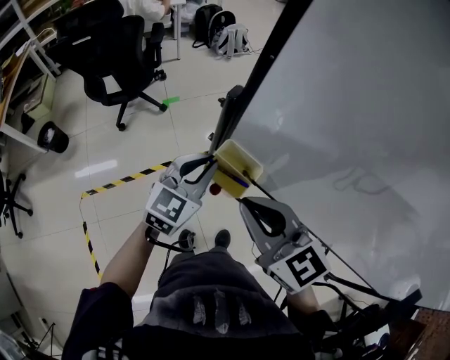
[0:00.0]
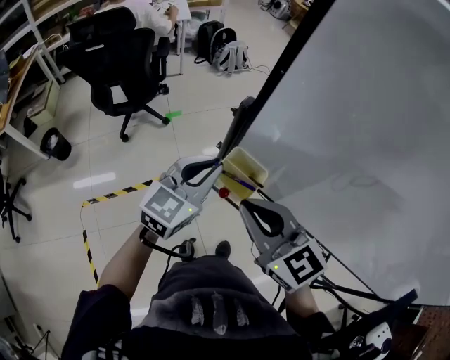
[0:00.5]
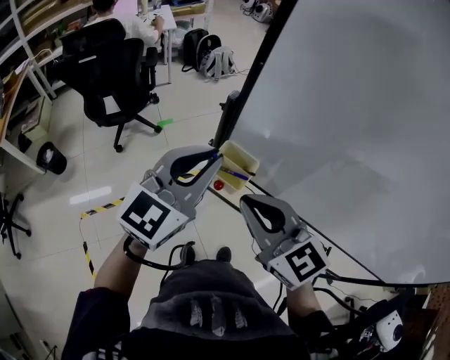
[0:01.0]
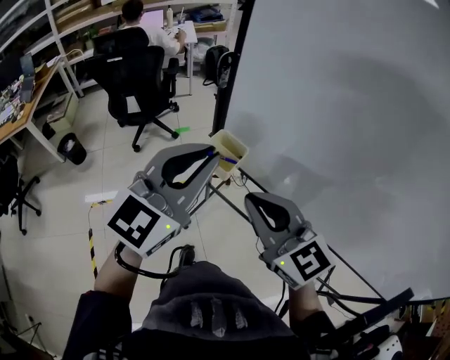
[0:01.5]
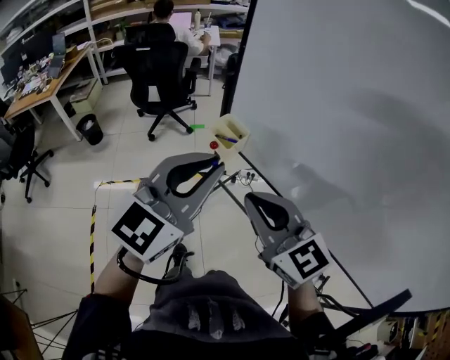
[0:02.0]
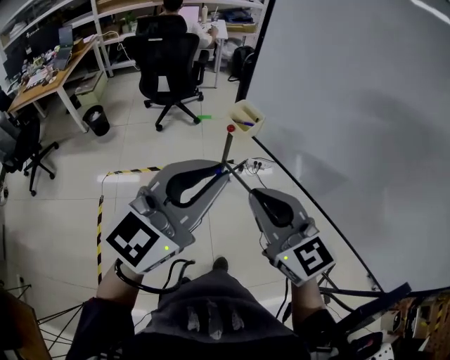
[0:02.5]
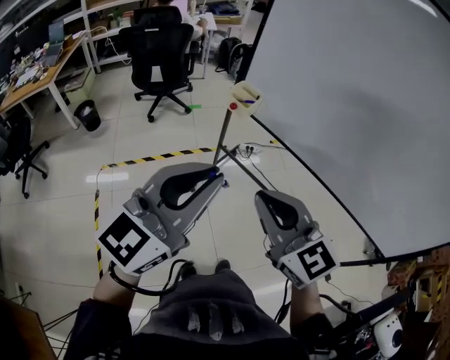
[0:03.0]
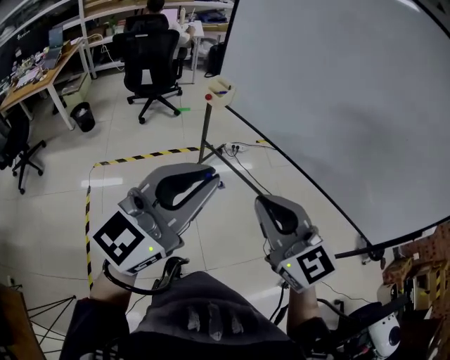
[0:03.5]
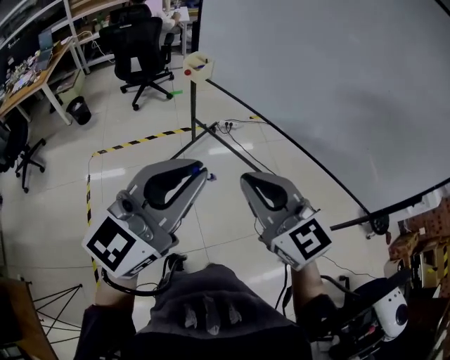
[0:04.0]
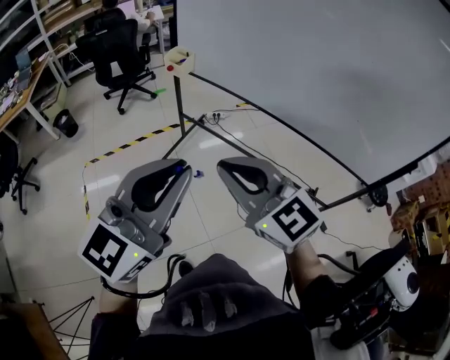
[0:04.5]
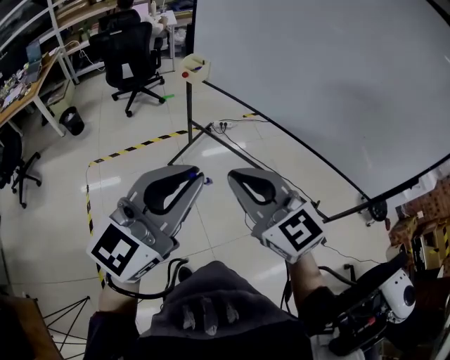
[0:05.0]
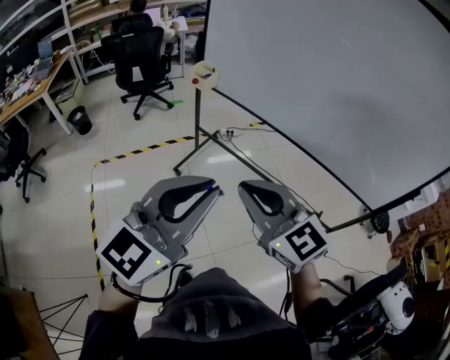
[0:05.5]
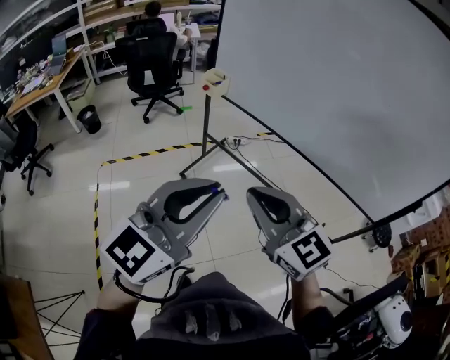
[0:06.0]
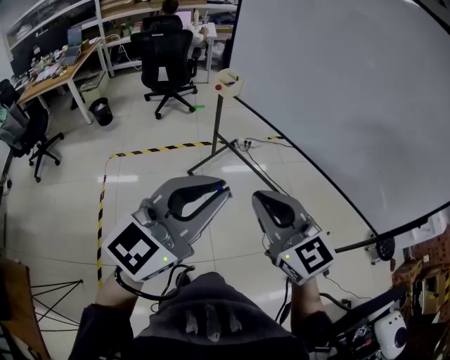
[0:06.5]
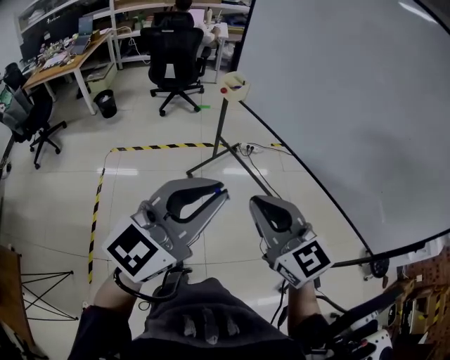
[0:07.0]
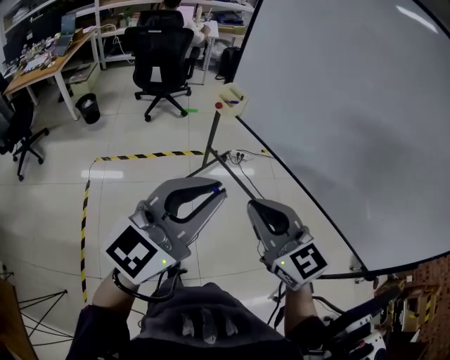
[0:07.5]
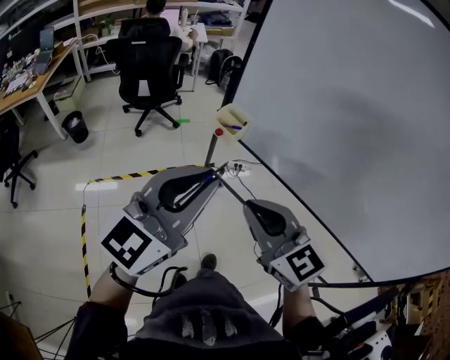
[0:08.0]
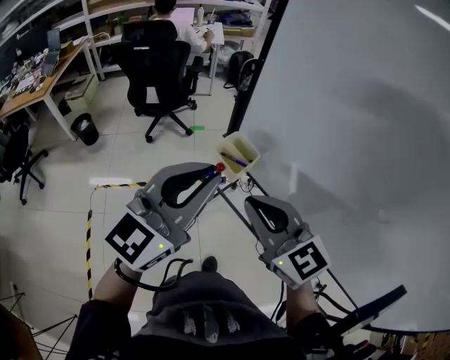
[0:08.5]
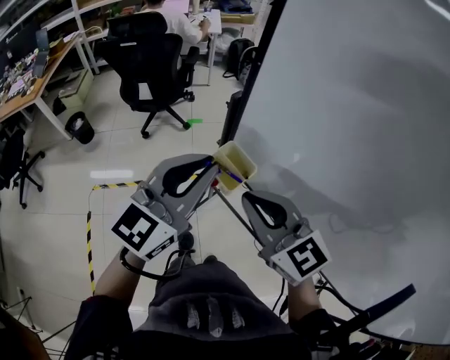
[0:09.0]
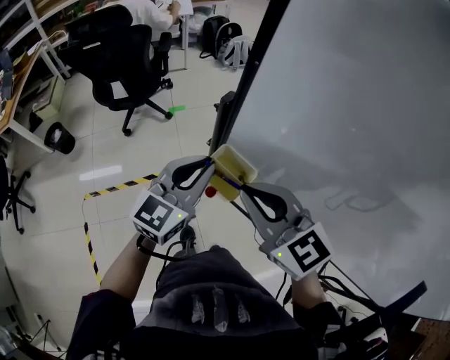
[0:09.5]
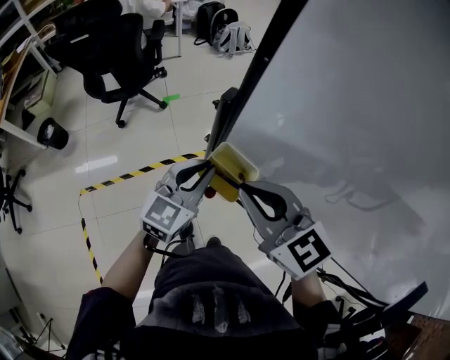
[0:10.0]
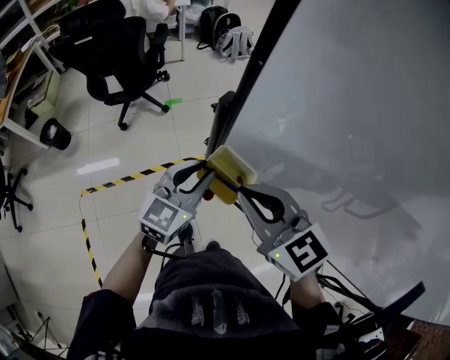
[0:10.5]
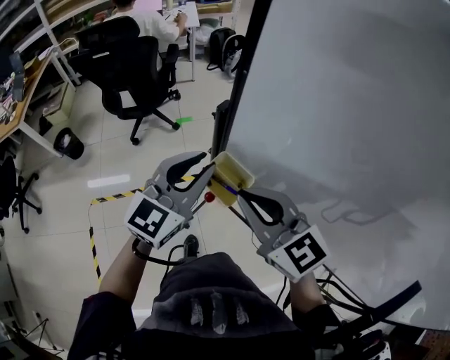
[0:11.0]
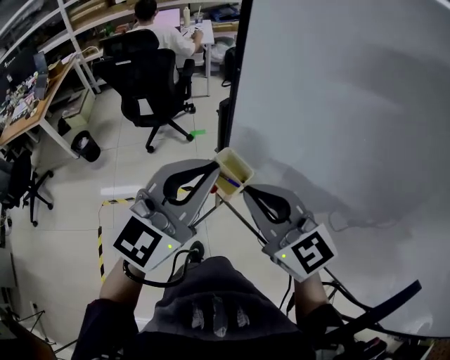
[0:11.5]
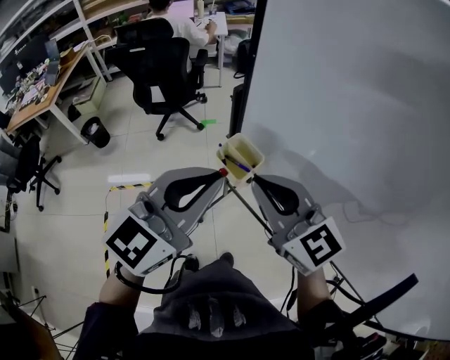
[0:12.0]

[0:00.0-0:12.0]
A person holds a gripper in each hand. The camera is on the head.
0:00.0 to 0:02.0: The right gripper goes roughly 20 cm backward; the left gripper goes some 40 cm backward and upward, and swivels some 20 degrees.
0:02.0 to 0:04.0: The grippers both shift backward by some 35 cm.
0:04.0 to 0:06.0: There are only small adjustments of the grippers.
0:06.0 to 0:08.0: The two grippers go some 30 cm forward.
0:08.0 to 0:10.0: The right gripper travels forward by roughly 35 cm, while the left gripper goes some 50 cm forward and downward, and changes its angle by about 20 degrees.
0:10.0 to 0:12.0: The left gripper travels upward and backward by roughly 30 cm, while the right gripper heads backward and upward, covering about 10 cm.

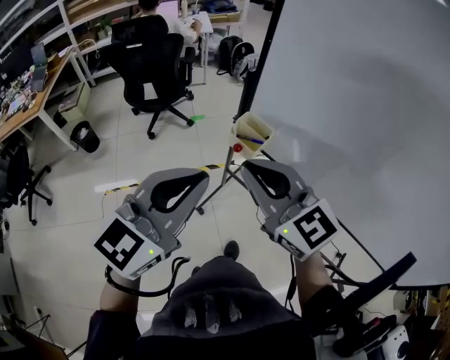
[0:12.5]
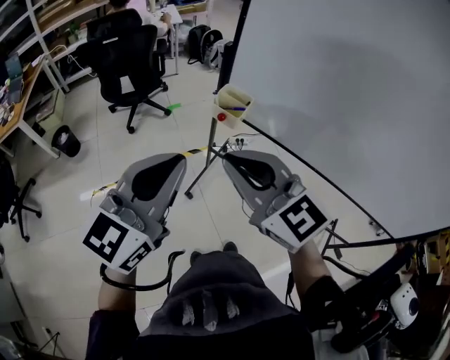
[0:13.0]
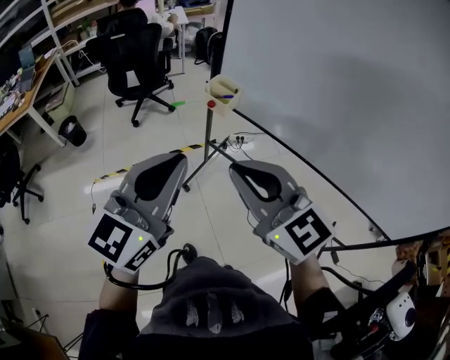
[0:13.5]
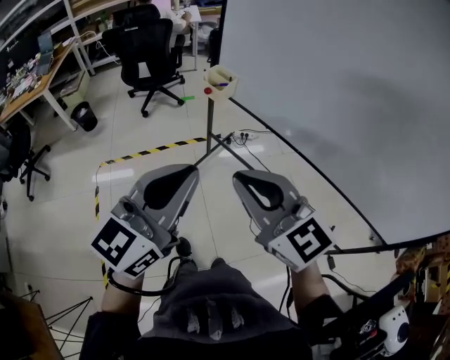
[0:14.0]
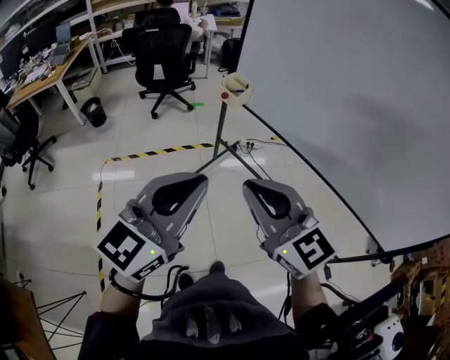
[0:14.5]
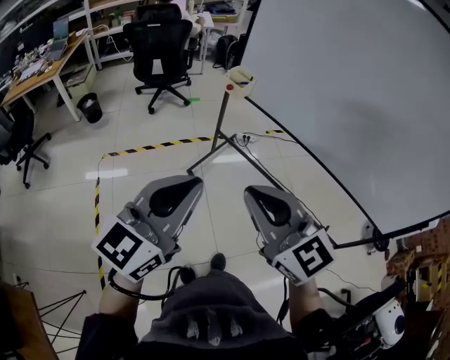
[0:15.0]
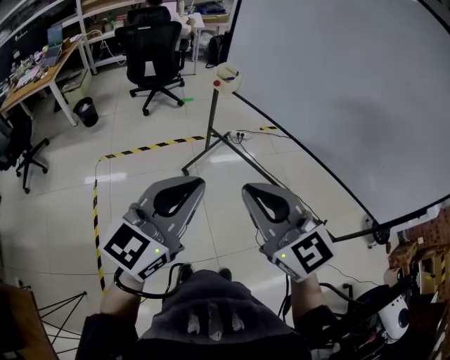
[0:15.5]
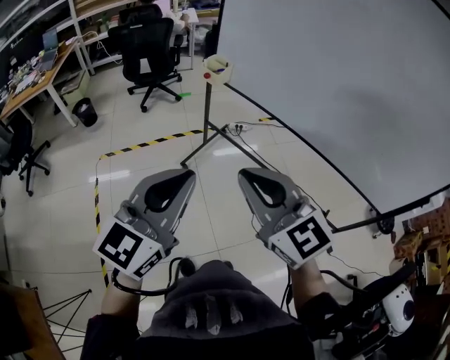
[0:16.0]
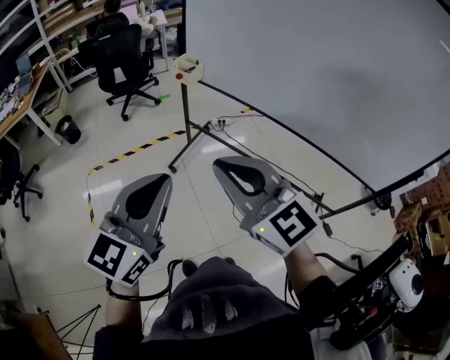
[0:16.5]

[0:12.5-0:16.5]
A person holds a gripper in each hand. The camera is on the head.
0:12.5 to 0:14.5: Both grippers travel together backward, roughly 30 cm.
0:14.5 to 0:16.5: The grippers both shift backward by approximately 10 cm.

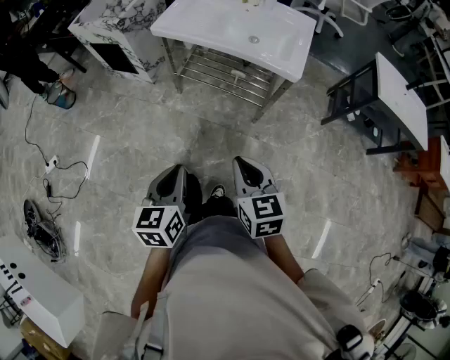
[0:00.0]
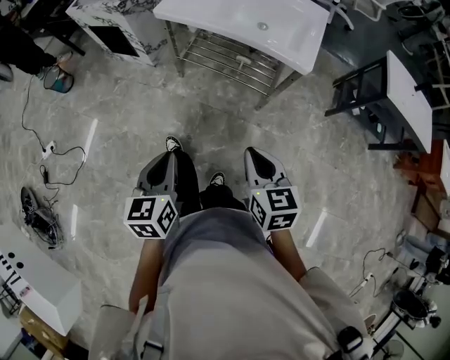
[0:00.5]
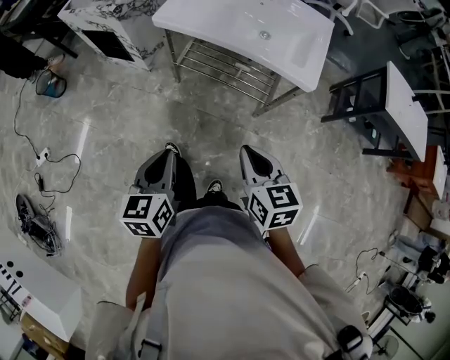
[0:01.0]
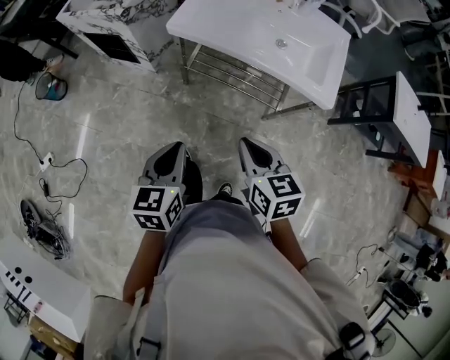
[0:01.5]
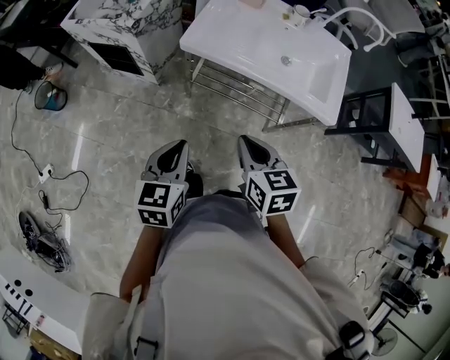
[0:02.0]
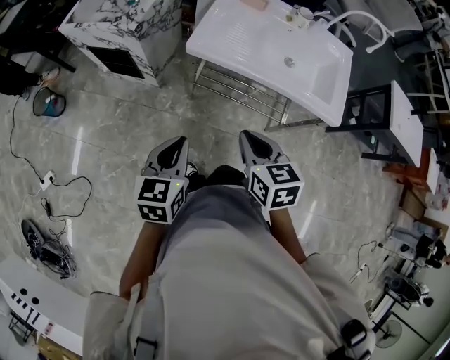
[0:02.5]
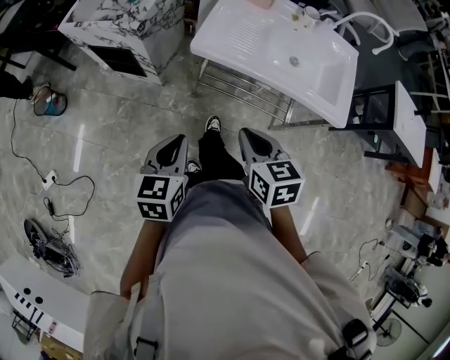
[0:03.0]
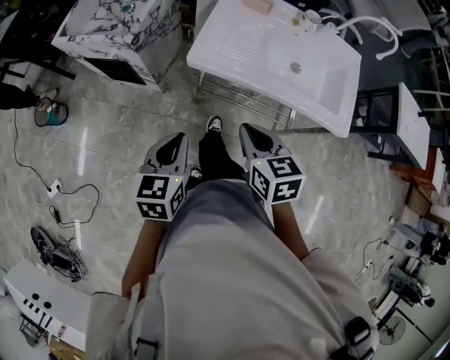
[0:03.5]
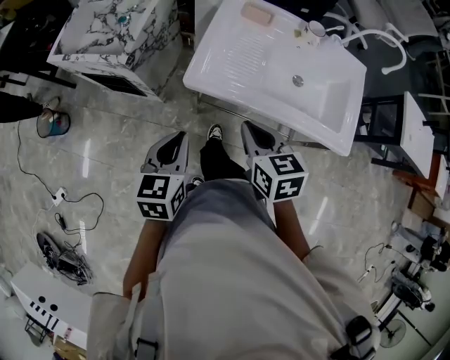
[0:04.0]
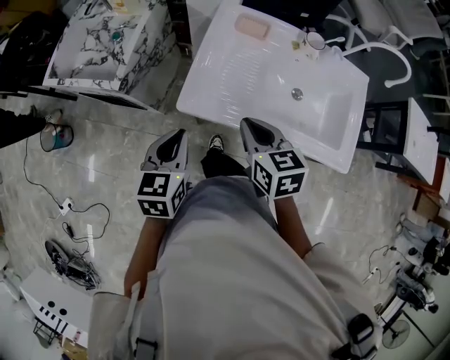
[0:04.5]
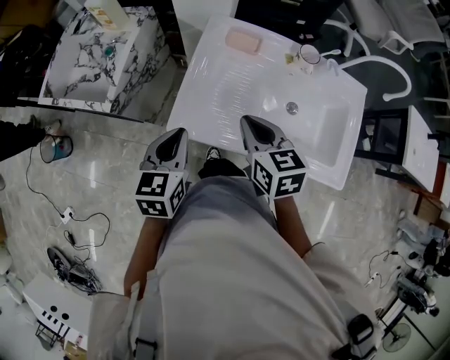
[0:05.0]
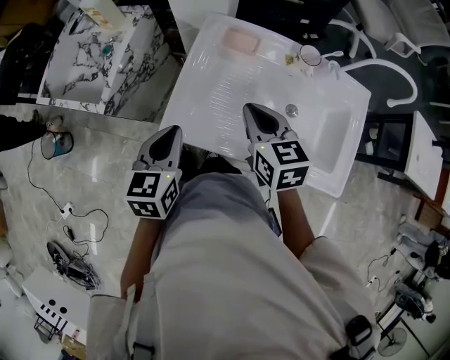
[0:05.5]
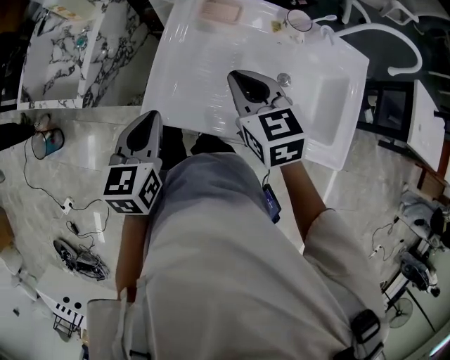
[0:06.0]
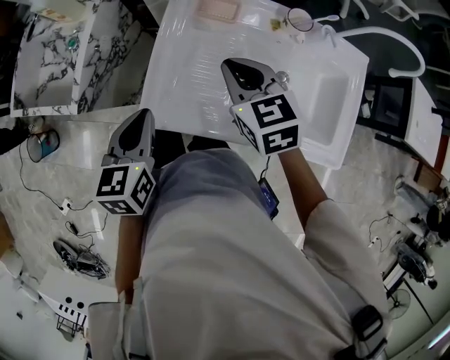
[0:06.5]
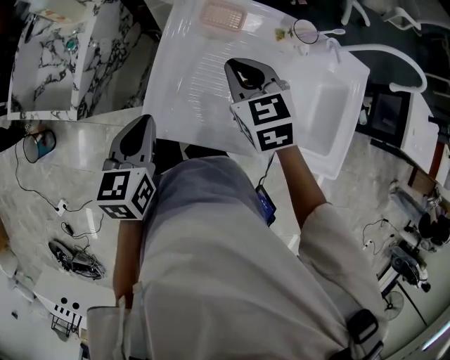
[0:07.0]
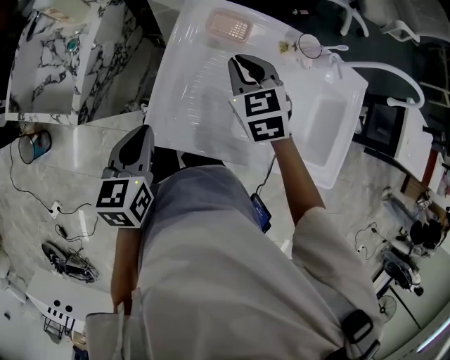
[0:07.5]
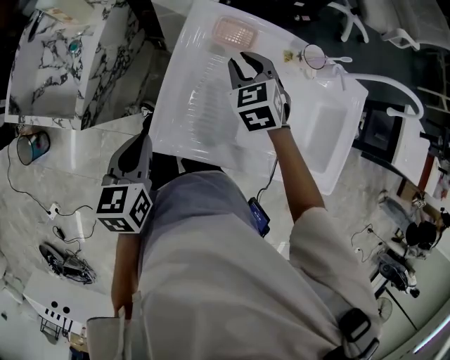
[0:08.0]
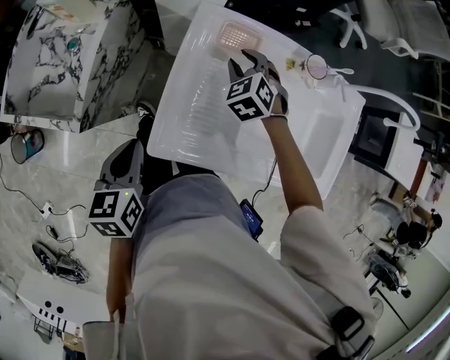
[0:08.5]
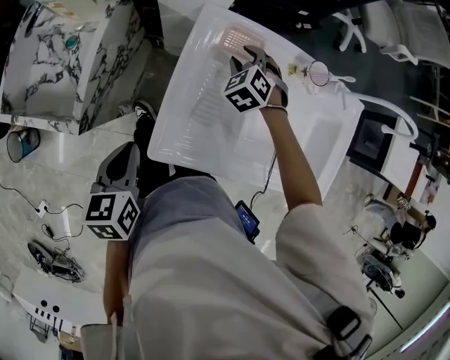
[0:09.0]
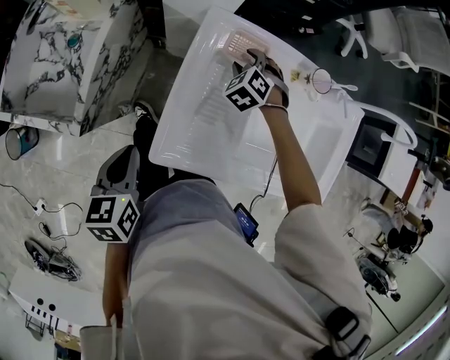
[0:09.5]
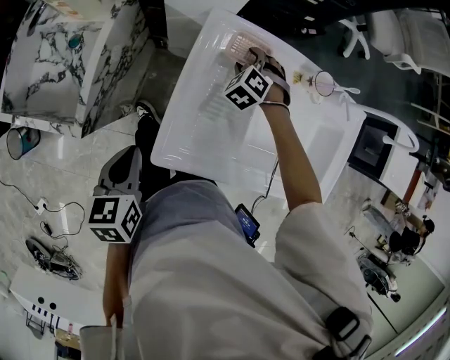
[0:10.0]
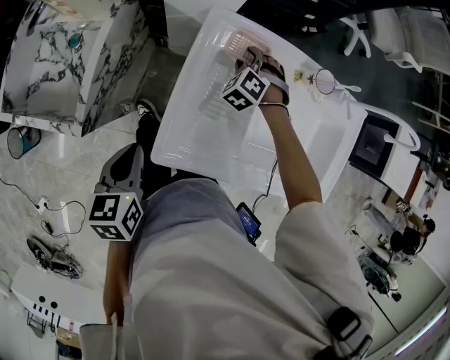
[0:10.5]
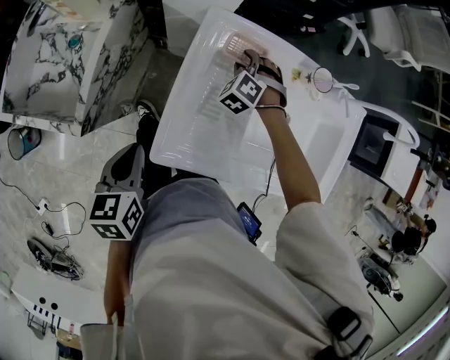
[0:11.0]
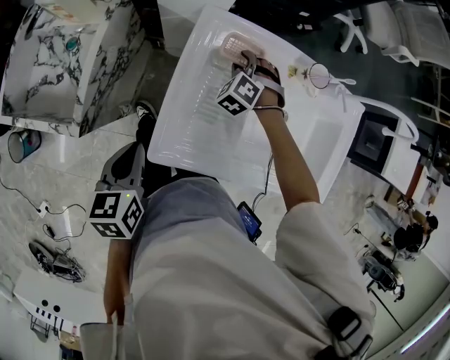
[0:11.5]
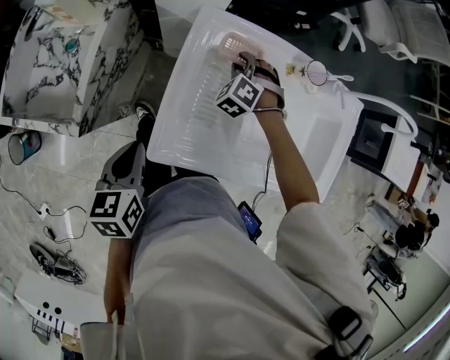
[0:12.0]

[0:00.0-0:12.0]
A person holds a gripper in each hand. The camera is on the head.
0:00.0 to 0:02.0: The grippers both shift forward and to the left by approximately 30 cm.
0:02.0 to 0:04.0: The two grippers go some 20 cm forward.
0:04.0 to 0:06.0: Both grippers travel together forward and to the right, approximately 20 cm.
0:06.0 to 0:08.0: The left gripper travels to the left by about 5 cm, while the right gripper heads forward and downward, covering some 20 cm, and swivels some 30 degrees.
0:08.0 to 0:10.0: The left gripper moves to the left, some 5 cm. The right gripper shifts about 15 cm downward and forward, swivels some 30 degrees, and opens its fingers.
0:10.0 to 0:12.0: The right gripper closes.
